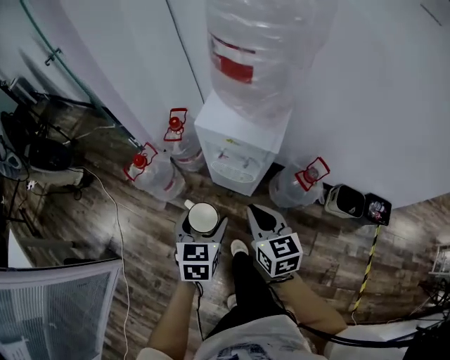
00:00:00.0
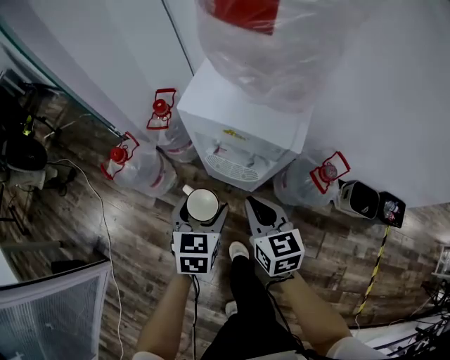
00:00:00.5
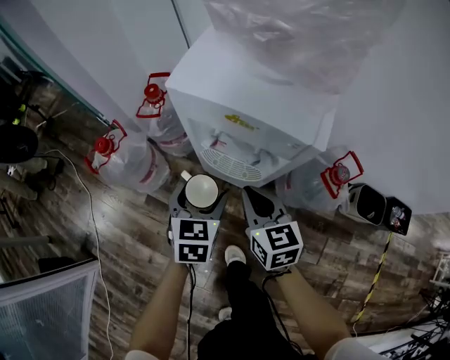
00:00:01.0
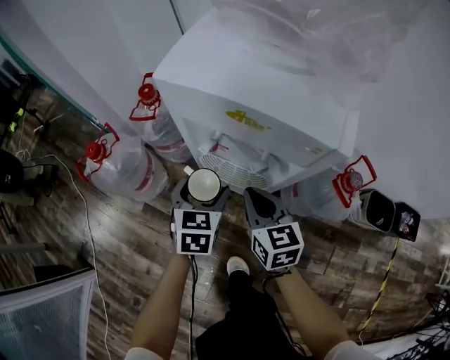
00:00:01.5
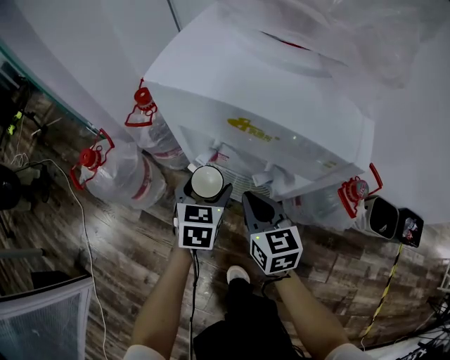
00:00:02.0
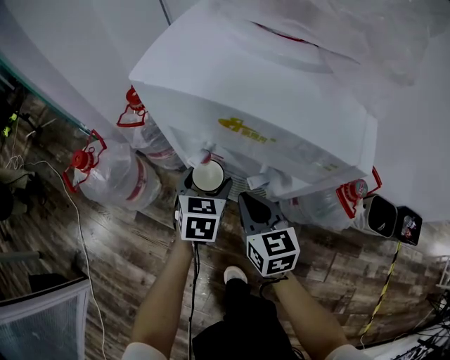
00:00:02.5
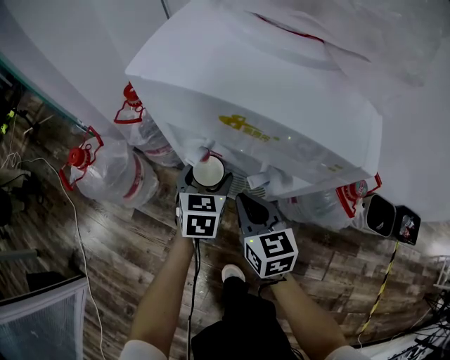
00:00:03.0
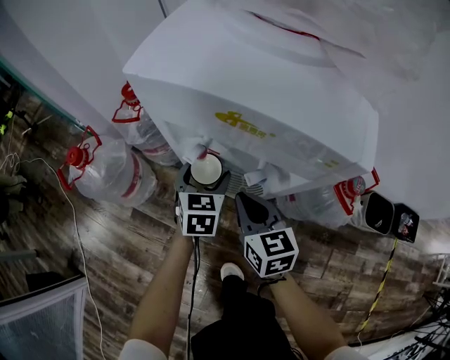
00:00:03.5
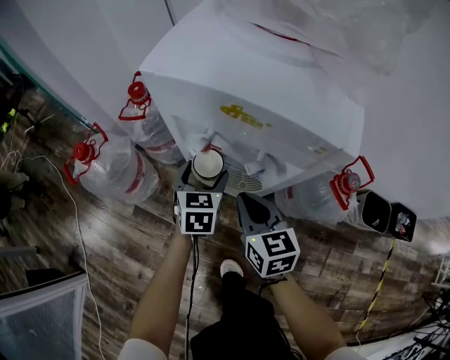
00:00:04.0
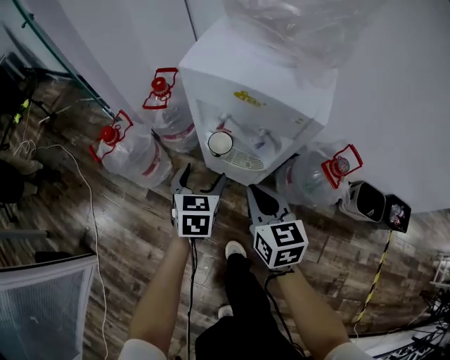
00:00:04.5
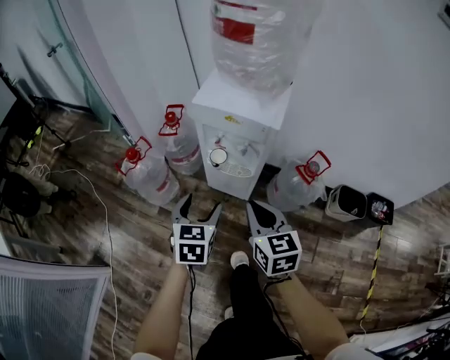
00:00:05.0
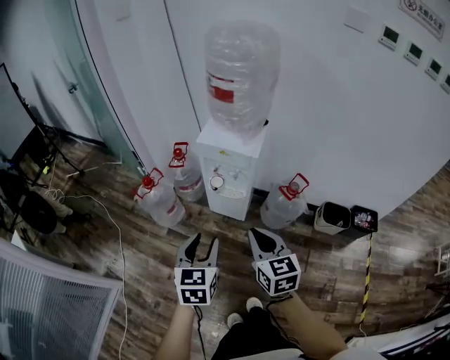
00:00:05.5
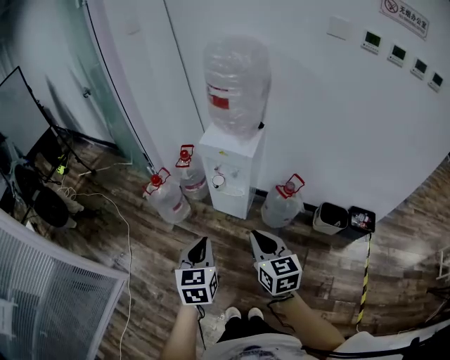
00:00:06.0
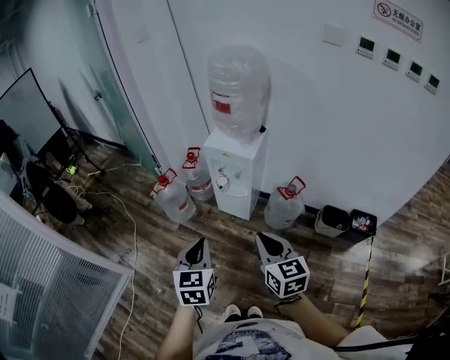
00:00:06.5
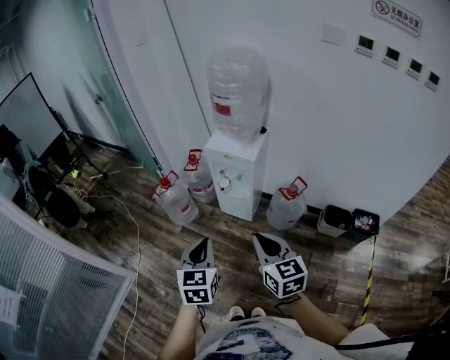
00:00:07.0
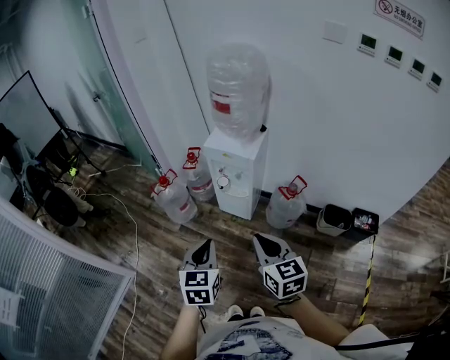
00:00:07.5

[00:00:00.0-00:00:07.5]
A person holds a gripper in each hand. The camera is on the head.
00:00:00.0 to 00:00:02.0: Both grippers travel together downward and forward, approximately 40 cm.
00:00:02.0 to 00:00:04.0: There are only small adjustments of the grippers.
00:00:04.0 to 00:00:05.5: Both grippers travel together upward and backward, about 60 cm. The left gripper closes up.
00:00:05.5 to 00:00:07.5: Both grippers move backward and upward, approximately 15 cm. The left gripper closes.

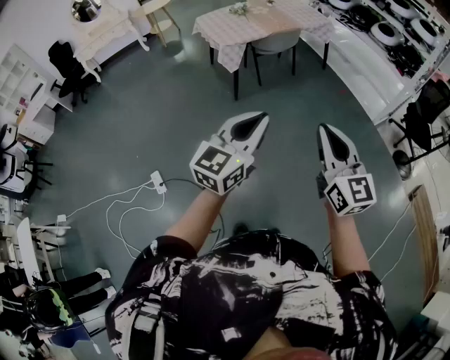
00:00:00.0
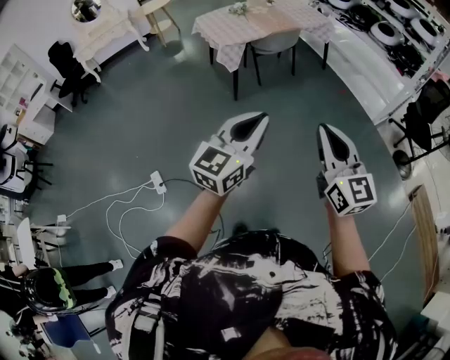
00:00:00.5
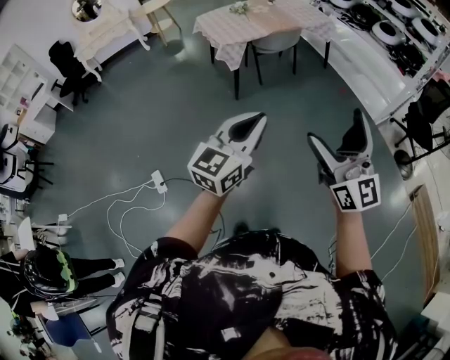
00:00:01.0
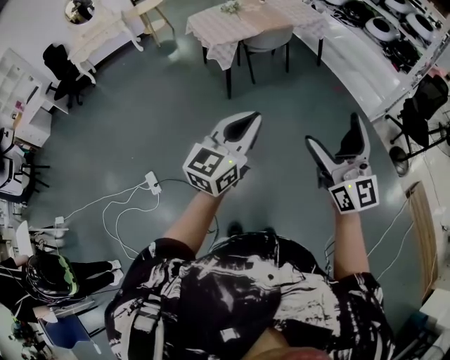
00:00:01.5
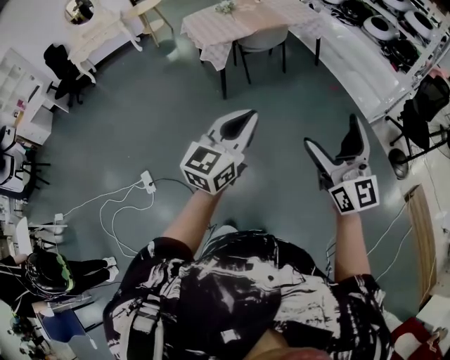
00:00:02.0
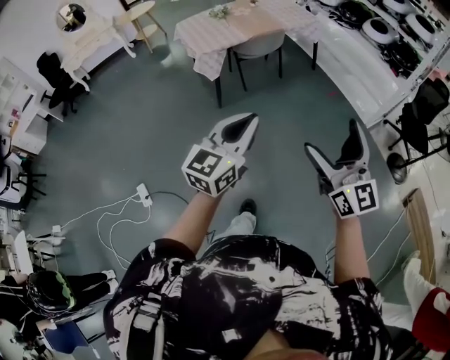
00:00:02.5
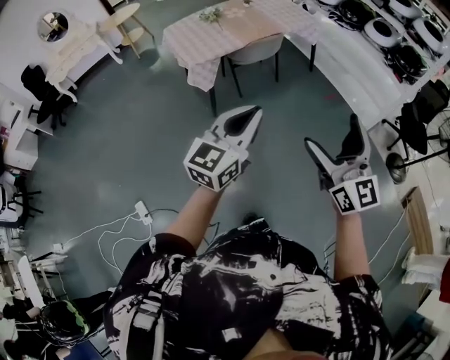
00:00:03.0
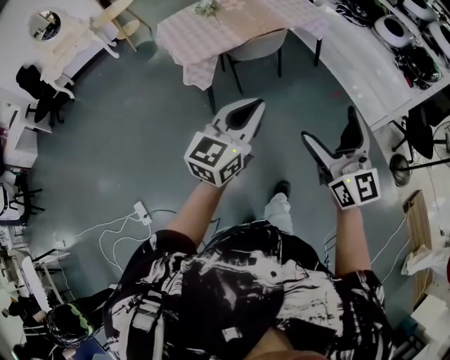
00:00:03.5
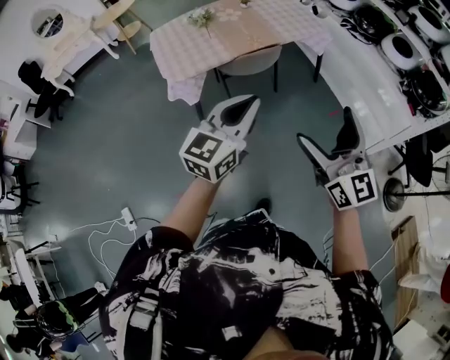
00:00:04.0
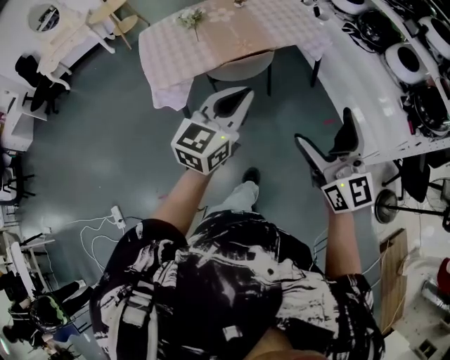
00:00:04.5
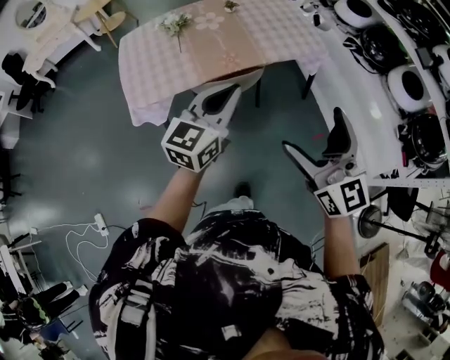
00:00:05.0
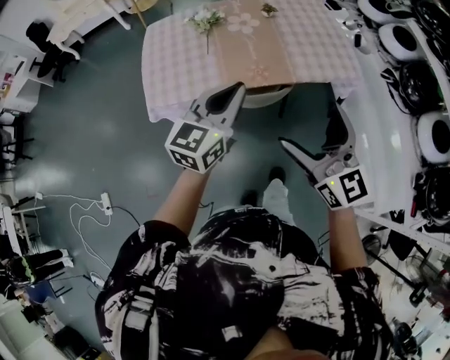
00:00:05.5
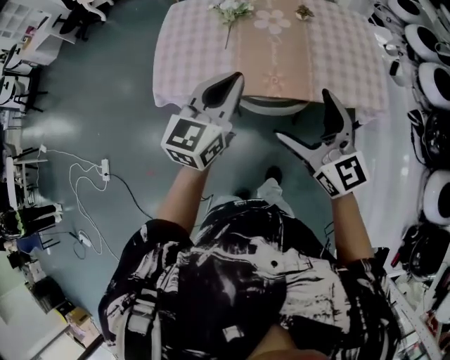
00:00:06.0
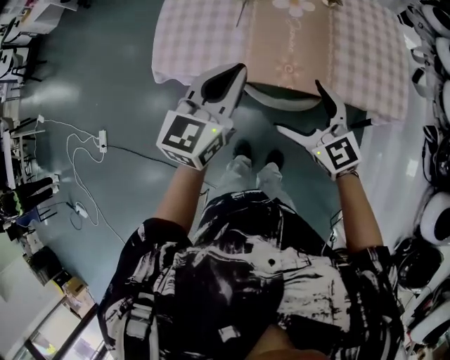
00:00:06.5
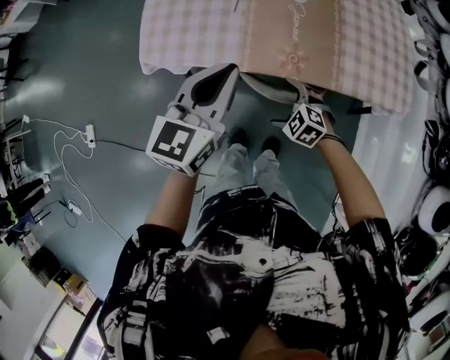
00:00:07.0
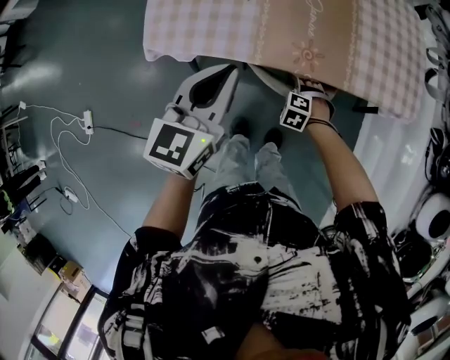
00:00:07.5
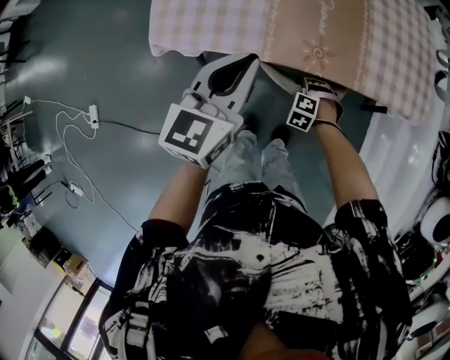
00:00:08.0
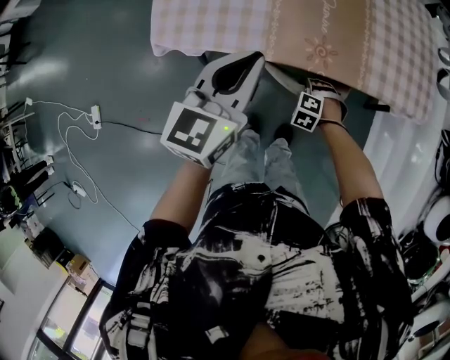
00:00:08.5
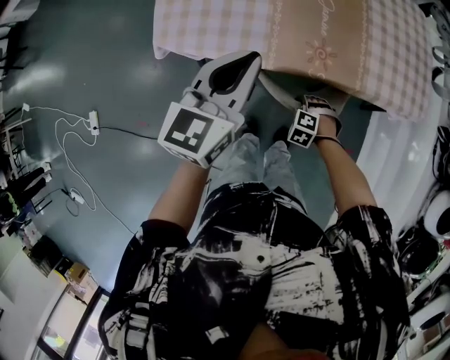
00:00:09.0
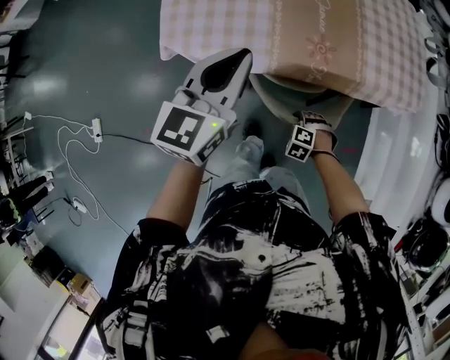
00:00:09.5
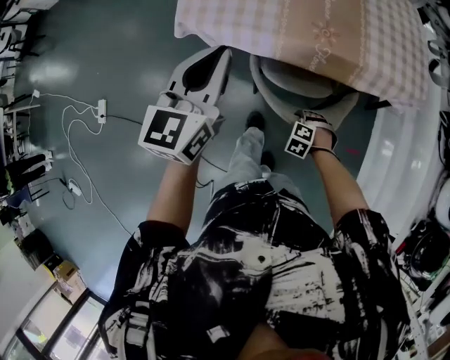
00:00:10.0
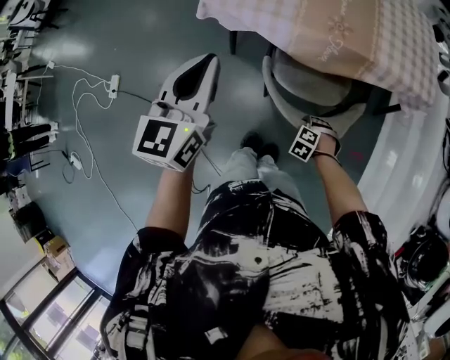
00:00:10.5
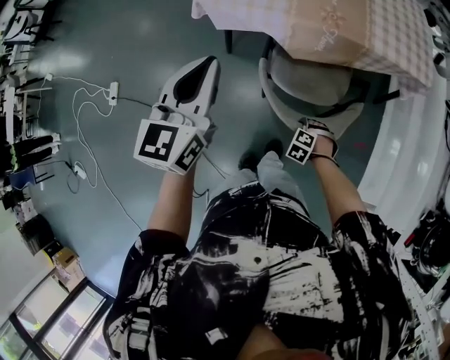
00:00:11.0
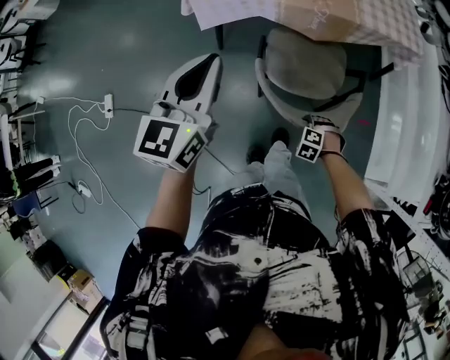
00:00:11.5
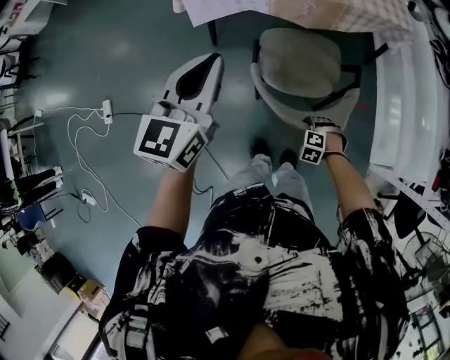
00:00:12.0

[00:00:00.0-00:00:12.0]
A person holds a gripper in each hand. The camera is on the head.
00:00:00.0 to 00:00:02.0: The right gripper travels to the right by roughly 15 cm, and opens its fingers. The left gripper travels to the right and forward by about 10 cm.
00:00:02.0 to 00:00:04.0: The pair of grippers is taken forward, roughly 60 cm.
00:00:04.0 to 00:00:06.0: Both grippers are carried approximately 60 cm. The right gripper swivels approximately 40 degrees. The left gripper swivels some 30 degrees.
00:00:06.0 to 00:00:08.0: The left gripper shifts some 15 cm downward. Meanwhile the right gripper goes about 50 cm downward, tips its fingers downward by roughly 80 degrees, and closes its fingers.
00:00:08.0 to 00:00:10.0: The left gripper changes place by some 20 cm, while the right gripper changes place by approximately 25 cm.
00:00:10.0 to 00:00:12.0: The left gripper ends up about 25 cm from where it was, while the right gripper changes place by some 30 cm.

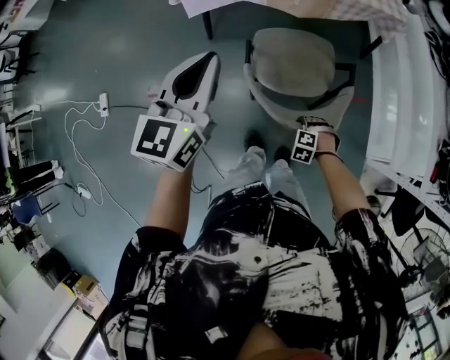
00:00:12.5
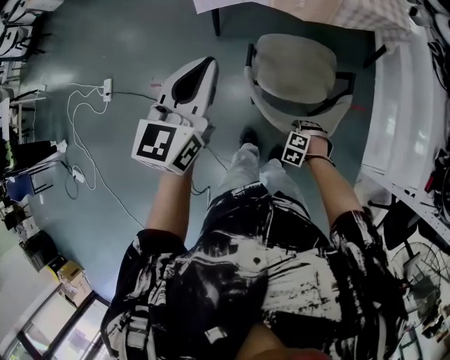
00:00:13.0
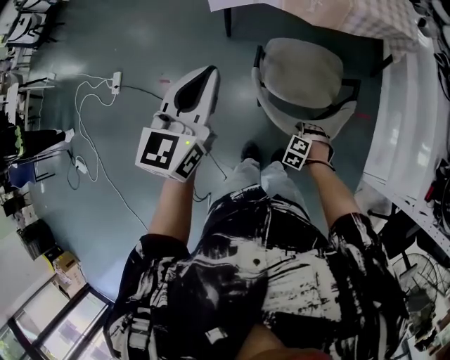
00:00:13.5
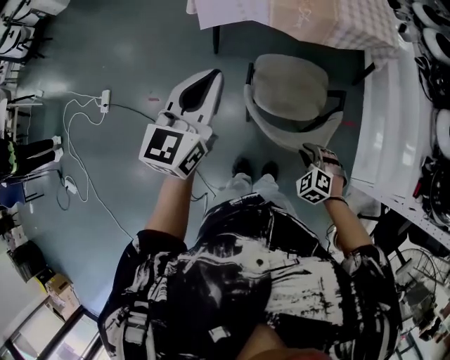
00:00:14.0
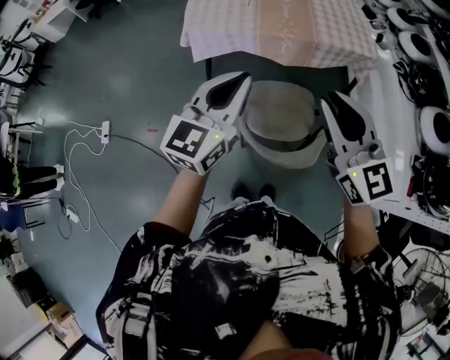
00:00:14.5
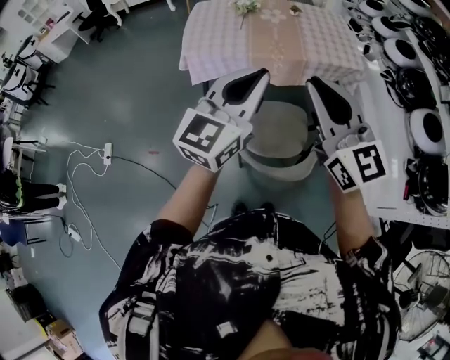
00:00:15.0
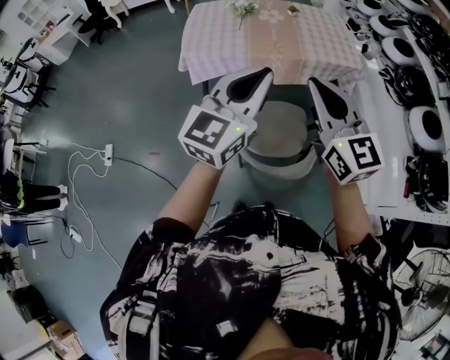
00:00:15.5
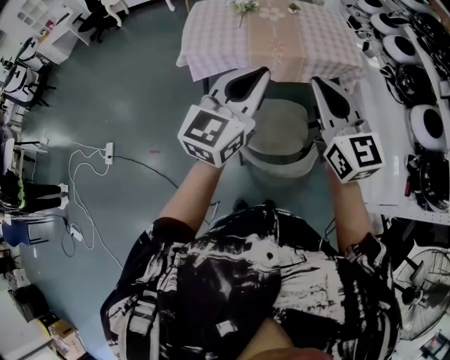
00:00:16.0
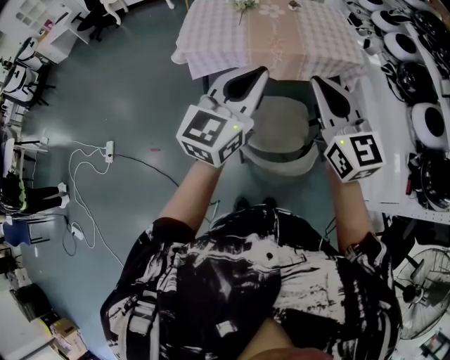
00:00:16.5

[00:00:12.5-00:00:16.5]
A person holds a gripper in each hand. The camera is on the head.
00:00:12.5 to 00:00:14.5: The left gripper moves upward, approximately 10 cm, while the right gripper heads upward, covering approximately 60 cm, and angles its fingers upward, by roughly 80 degrees.
00:00:14.5 to 00:00:16.5: The left gripper shifts some 10 cm upward and to the right.

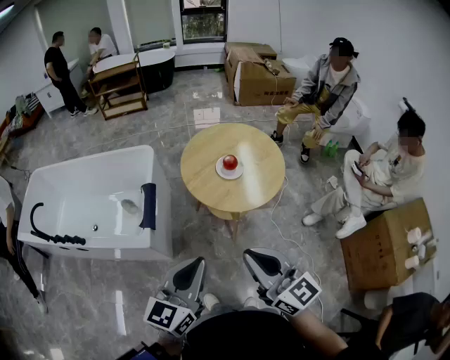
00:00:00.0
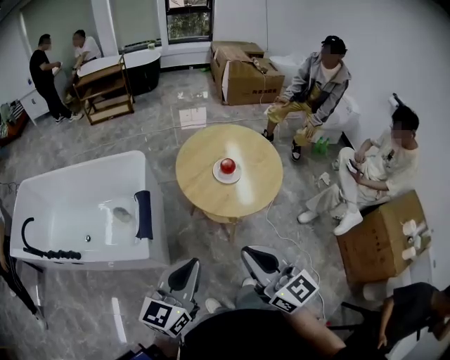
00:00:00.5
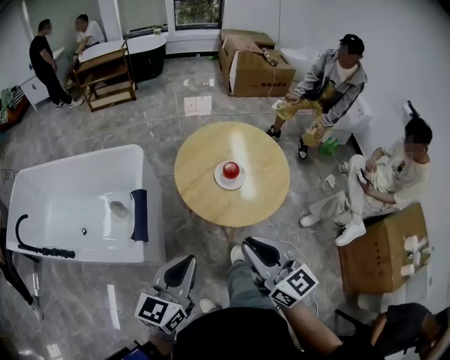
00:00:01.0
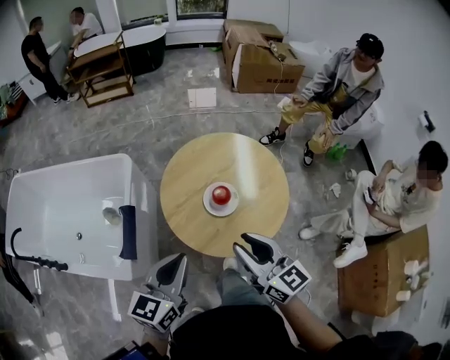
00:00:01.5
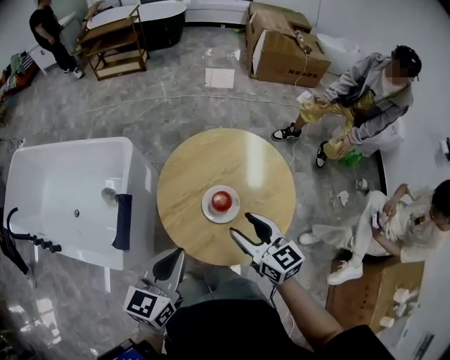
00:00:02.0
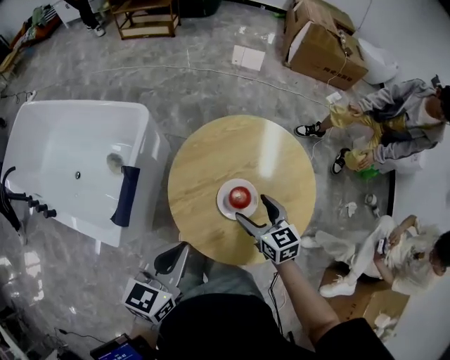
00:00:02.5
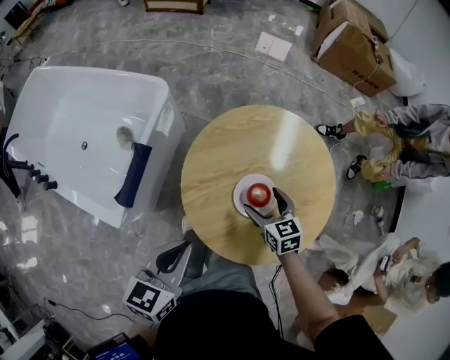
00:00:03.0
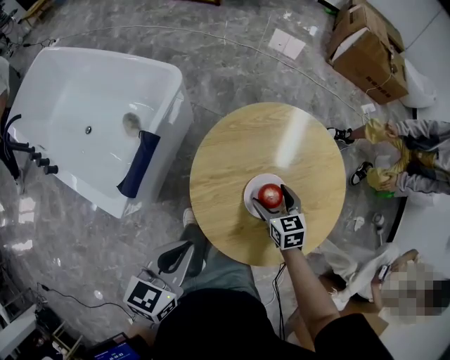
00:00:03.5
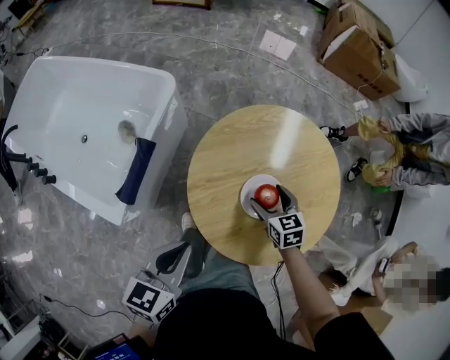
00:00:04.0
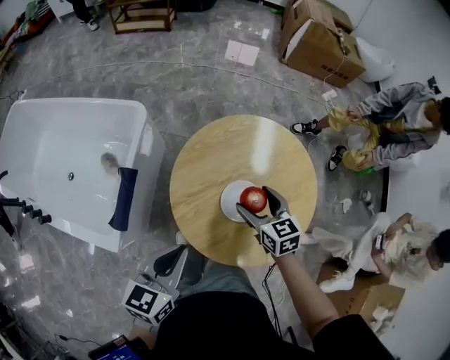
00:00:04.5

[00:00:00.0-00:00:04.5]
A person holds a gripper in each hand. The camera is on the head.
00:00:00.0 to 00:00:02.0: The grippers both shift forward by roughly 40 cm. The right gripper turns by some 20 degrees, and opens its fingers.
00:00:02.0 to 00:00:04.5: The right gripper goes about 15 cm downward and forward, and opens, while the left gripper heads downward and to the left, covering about 10 cm.
